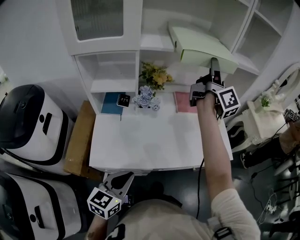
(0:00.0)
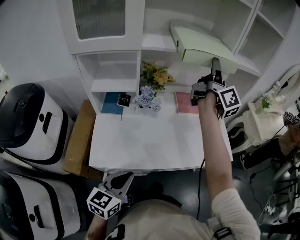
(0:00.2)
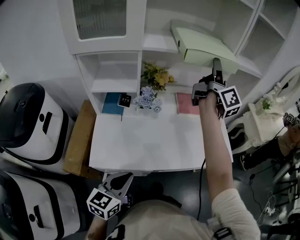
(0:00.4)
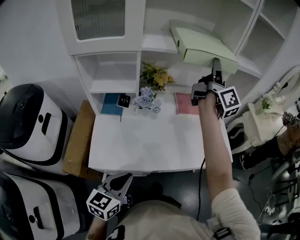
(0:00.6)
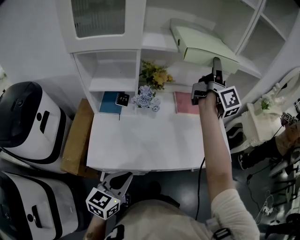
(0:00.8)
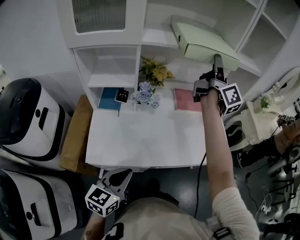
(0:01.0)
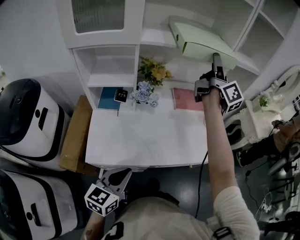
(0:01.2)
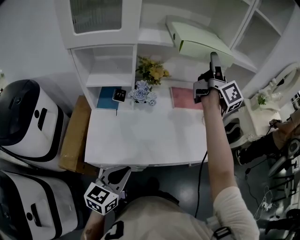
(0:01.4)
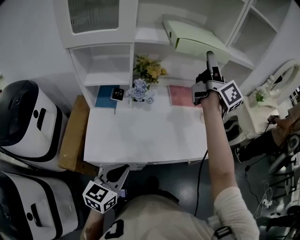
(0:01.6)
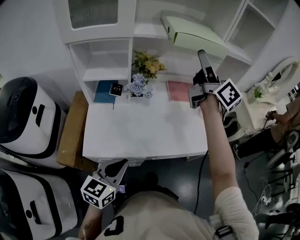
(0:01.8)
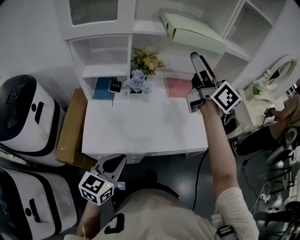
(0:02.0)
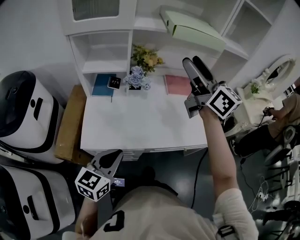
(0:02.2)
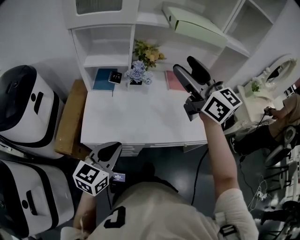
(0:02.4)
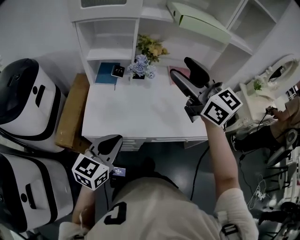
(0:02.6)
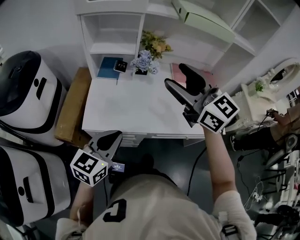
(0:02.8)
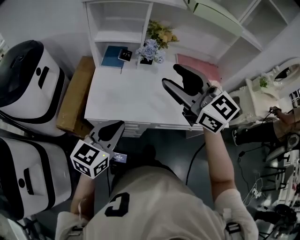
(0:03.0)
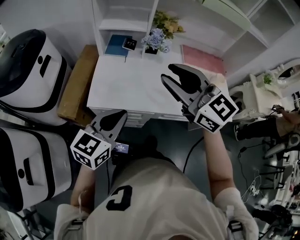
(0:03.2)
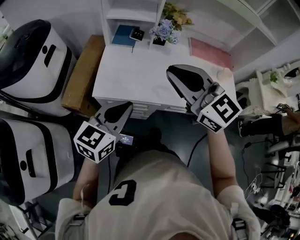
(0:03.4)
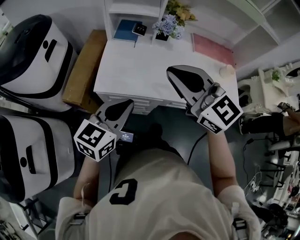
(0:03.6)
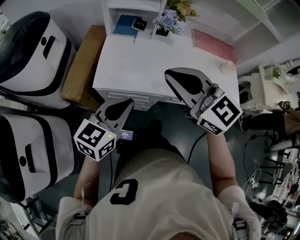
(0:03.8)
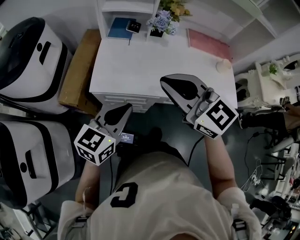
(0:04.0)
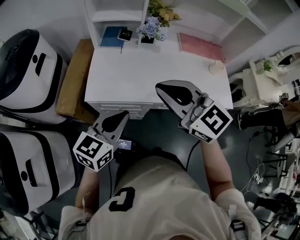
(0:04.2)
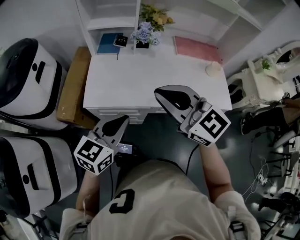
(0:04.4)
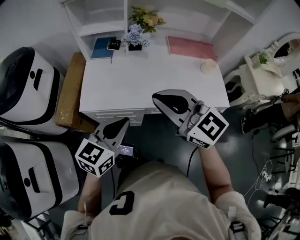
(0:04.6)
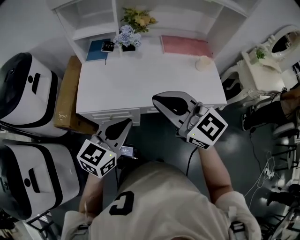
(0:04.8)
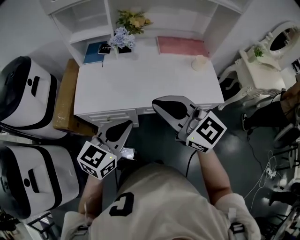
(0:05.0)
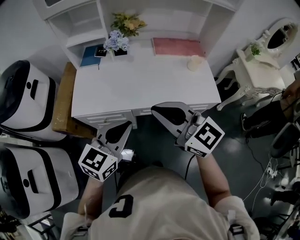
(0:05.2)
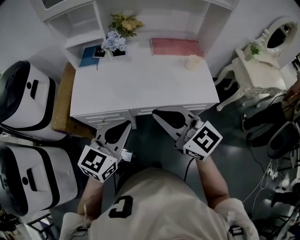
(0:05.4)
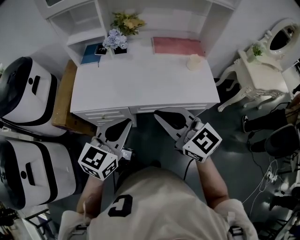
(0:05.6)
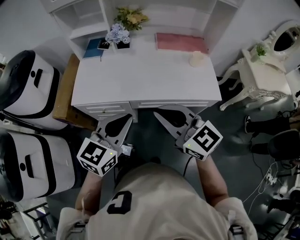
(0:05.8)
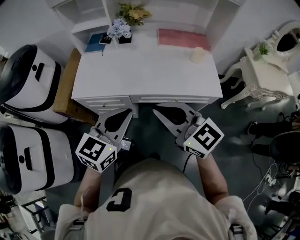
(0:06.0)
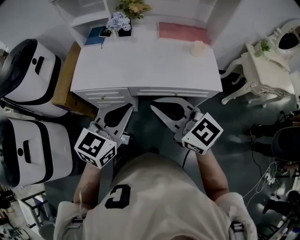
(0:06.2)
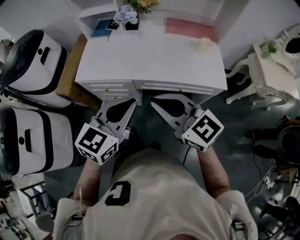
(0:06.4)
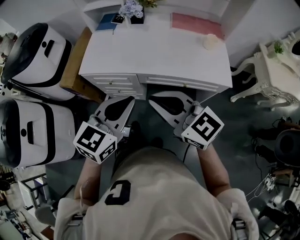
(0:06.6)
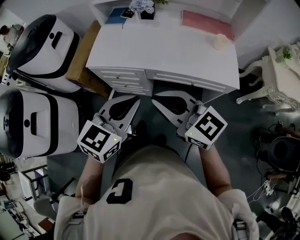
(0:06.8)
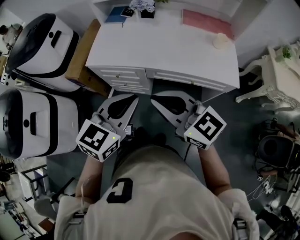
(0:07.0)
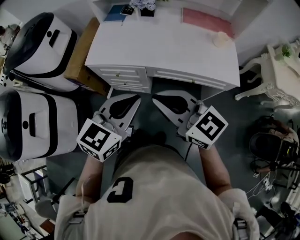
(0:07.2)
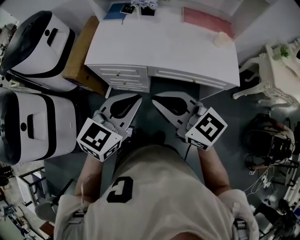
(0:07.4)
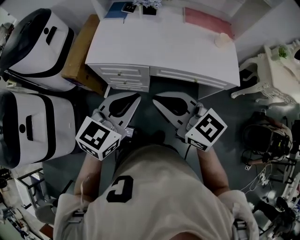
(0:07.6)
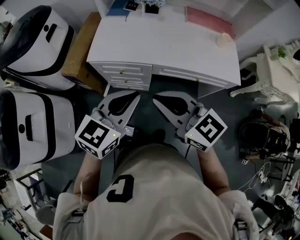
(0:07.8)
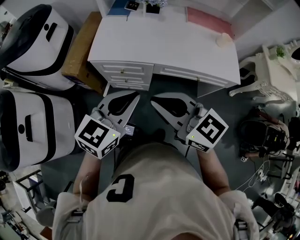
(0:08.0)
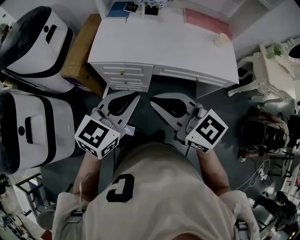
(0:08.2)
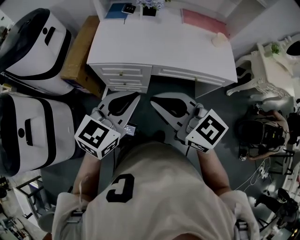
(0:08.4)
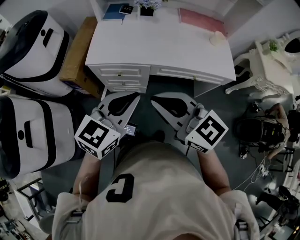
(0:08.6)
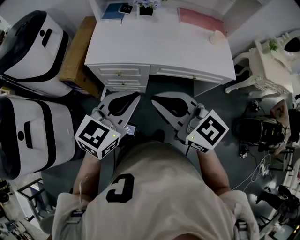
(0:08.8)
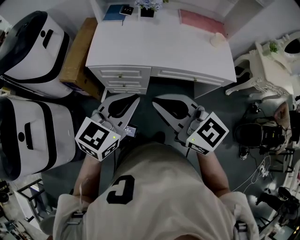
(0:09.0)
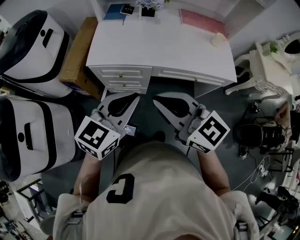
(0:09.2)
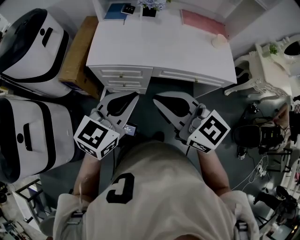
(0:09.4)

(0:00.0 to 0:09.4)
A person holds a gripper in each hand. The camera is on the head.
0:00.0 - 0:01.6: The grippers stay close to where they were, moving slightly.
0:01.6 - 0:03.2: The left gripper moves about 5 cm. Meanwhile the right gripper moves approximately 35 cm, tips its fingers downward by roughly 30 degrees, and closes.
0:03.2 - 0:04.8: The right gripper is displaced backward and to the right by approximately 10 cm. The left gripper is displaced to the right and backward by some 10 cm.
0:04.8 - 0:06.2: The right gripper goes some 15 cm backward and to the right. The left gripper shifts about 10 cm to the right and backward.
0:06.2 - 0:07.8: The grippers both shift to the left by about 10 cm.
0:07.8 - 0:09.4: The grippers move only a little.

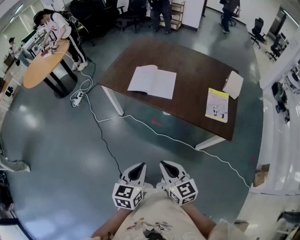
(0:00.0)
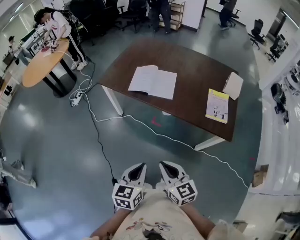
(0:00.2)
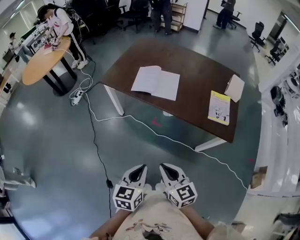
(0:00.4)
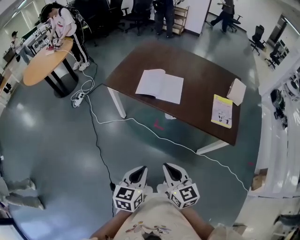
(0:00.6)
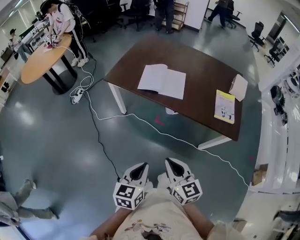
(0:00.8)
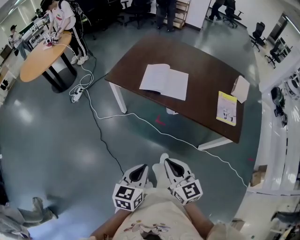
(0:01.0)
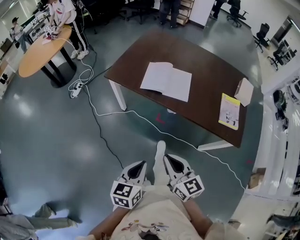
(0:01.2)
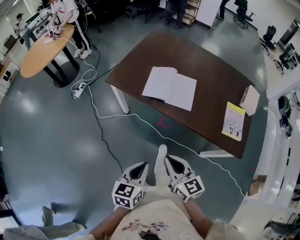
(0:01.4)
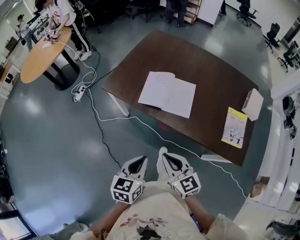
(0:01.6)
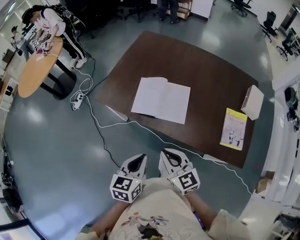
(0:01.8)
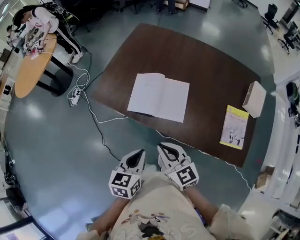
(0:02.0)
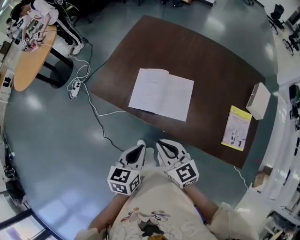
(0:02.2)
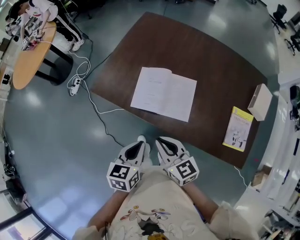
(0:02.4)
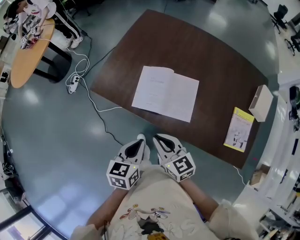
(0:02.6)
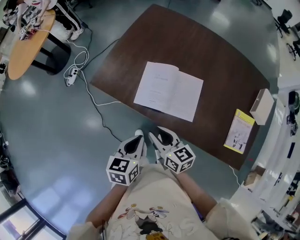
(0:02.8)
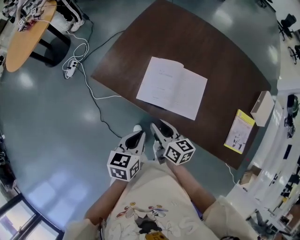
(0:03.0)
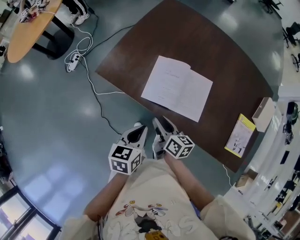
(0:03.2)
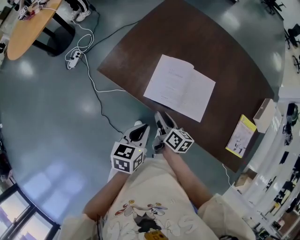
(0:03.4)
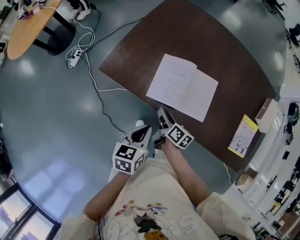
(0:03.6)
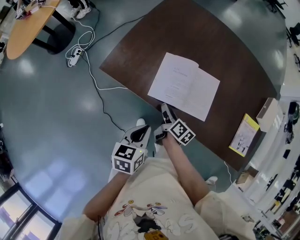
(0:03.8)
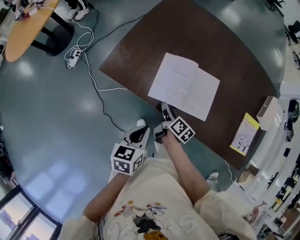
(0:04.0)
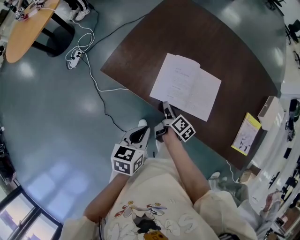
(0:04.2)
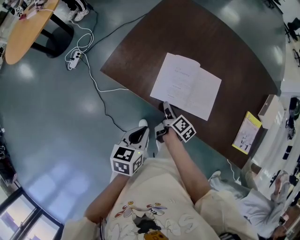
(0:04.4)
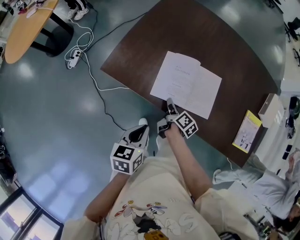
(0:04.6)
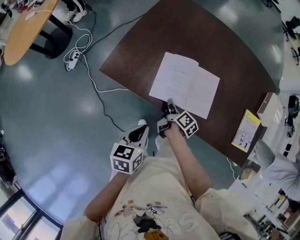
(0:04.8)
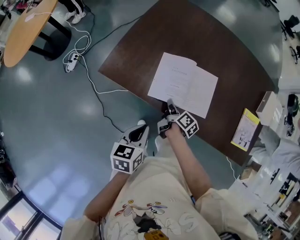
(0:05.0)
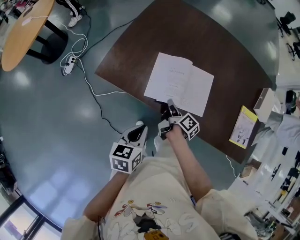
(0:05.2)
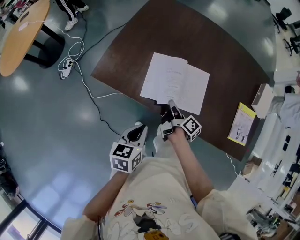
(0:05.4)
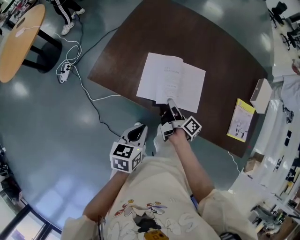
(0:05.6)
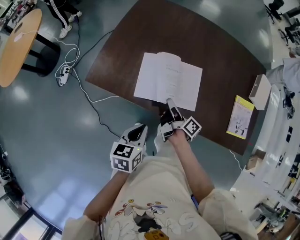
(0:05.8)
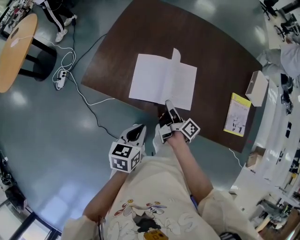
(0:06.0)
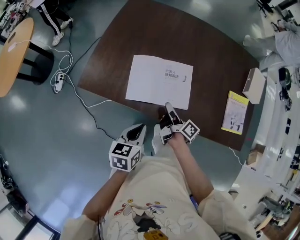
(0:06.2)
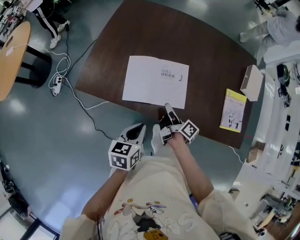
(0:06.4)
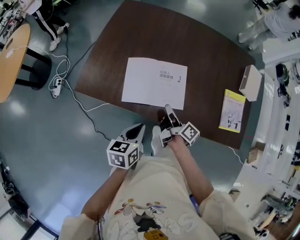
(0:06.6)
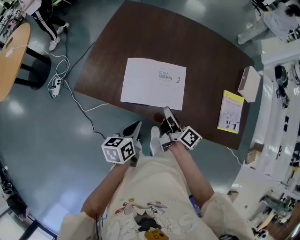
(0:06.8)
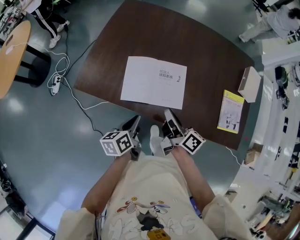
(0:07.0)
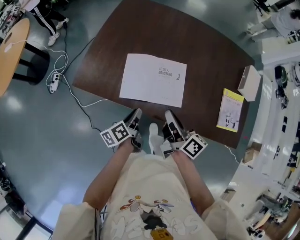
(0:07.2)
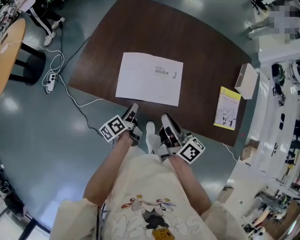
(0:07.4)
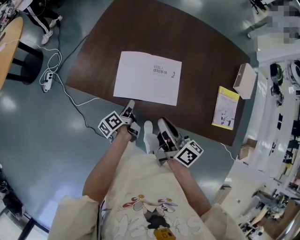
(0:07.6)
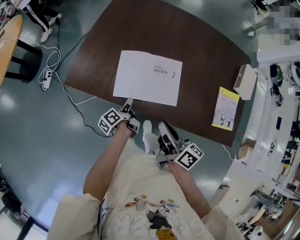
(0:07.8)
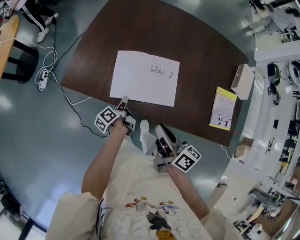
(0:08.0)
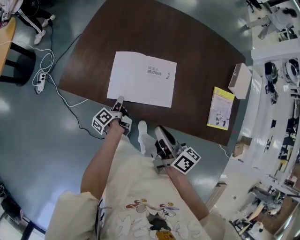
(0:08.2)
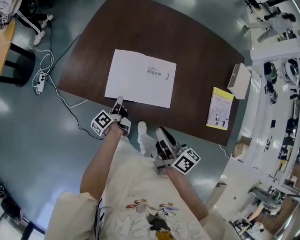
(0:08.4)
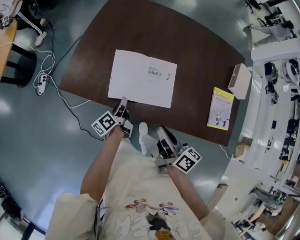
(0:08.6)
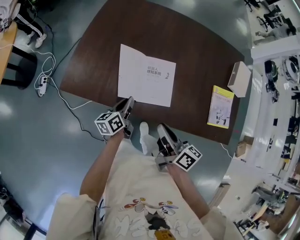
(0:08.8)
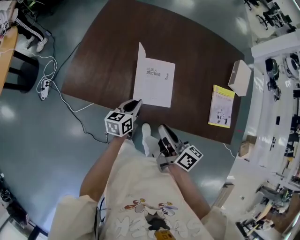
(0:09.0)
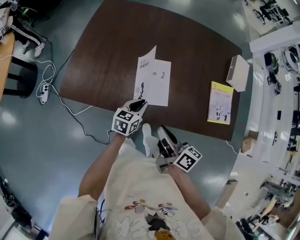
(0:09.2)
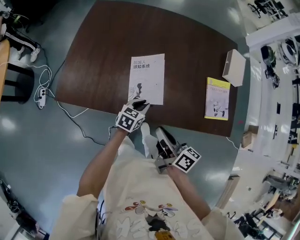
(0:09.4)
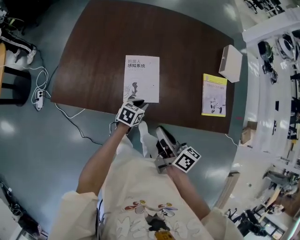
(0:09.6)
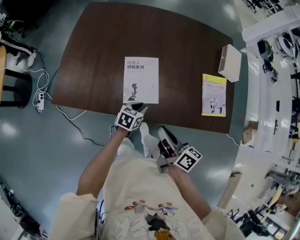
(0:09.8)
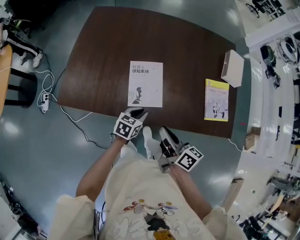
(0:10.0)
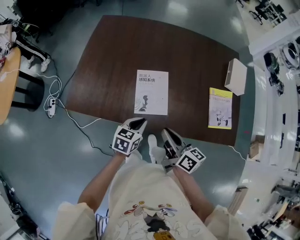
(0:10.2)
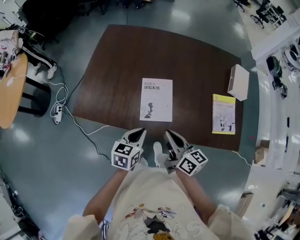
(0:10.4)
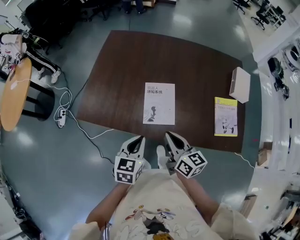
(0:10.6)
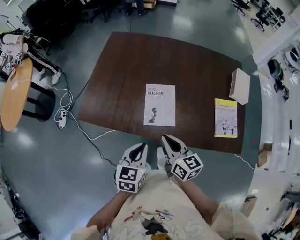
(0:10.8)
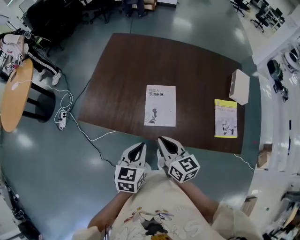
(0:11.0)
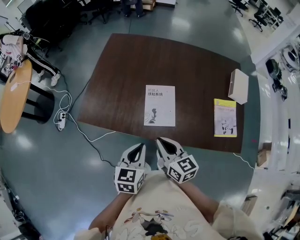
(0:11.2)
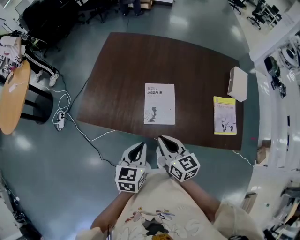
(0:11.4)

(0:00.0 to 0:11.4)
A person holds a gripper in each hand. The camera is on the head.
0:00.0 - 0:01.4: The grippers both shift forward and to the left by roughly 20 cm.
0:01.4 - 0:02.8: The grippers both shift forward by roughly 30 cm. The right gripper opens its fingers.
0:02.8 - 0:04.2: The left gripper travels to the left by approximately 5 cm. Meanwhile the right gripper goes roughly 20 cm downward and forward, and rotates around the line of its fingers by roughly 50 degrees, clockwise from behind.
0:04.2 - 0:05.6: The right gripper shifts roughly 10 cm to the right and upward, turns by approximately 20 degrees, and closes, then opens again; the left gripper heads to the right, covering approximately 5 cm.
0:05.6 - 0:07.2: The right gripper goes approximately 15 cm upward and to the right, rotates roughly 30 degrees, and closes up. The left gripper heads downward and forward, covering some 10 cm, and rotates approximately 40 degrees.
0:07.2 - 0:08.6: The left gripper moves forward and downward, approximately 10 cm.
0:08.6 - 0:10.0: The left gripper moves up and down over roughly 10 cm, changing direction 2 times, and rolls clockwise, seen from behind, by about 60 degrees, while the right gripper shifts by roughly 10 cm.
0:10.0 - 0:11.4: The left gripper moves upward, to the left and backward, some 20 cm, and swivels some 30 degrees, while the right gripper travels to the left by about 10 cm, and turns by some 40 degrees.

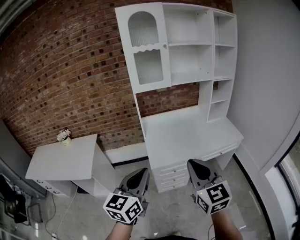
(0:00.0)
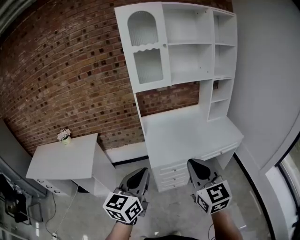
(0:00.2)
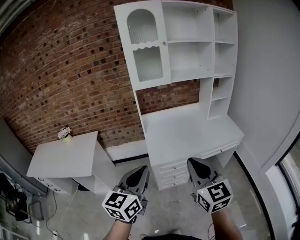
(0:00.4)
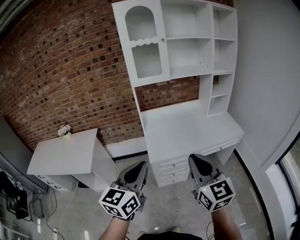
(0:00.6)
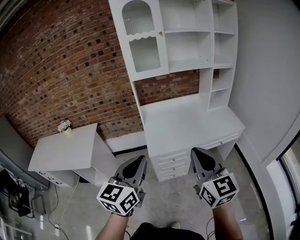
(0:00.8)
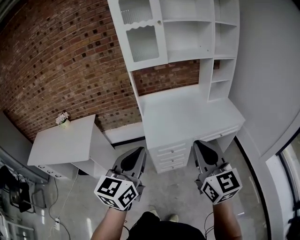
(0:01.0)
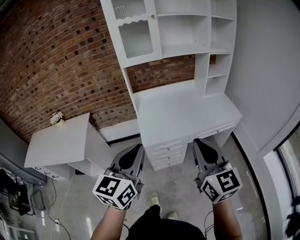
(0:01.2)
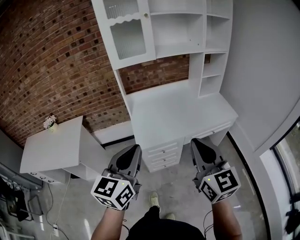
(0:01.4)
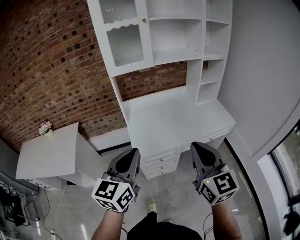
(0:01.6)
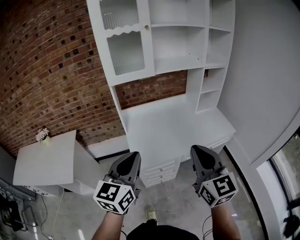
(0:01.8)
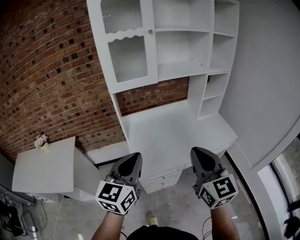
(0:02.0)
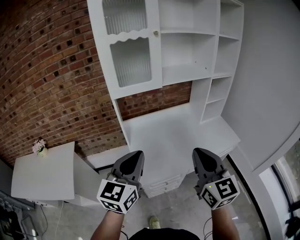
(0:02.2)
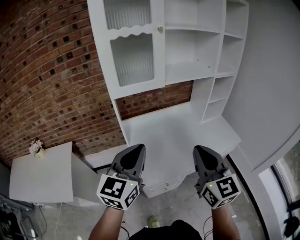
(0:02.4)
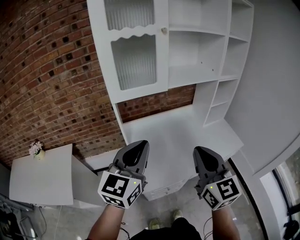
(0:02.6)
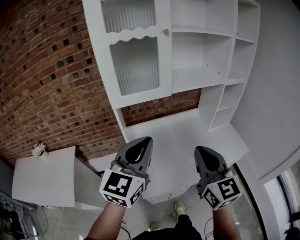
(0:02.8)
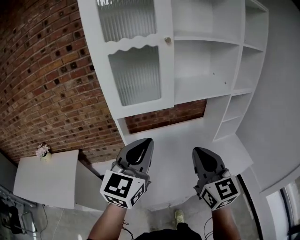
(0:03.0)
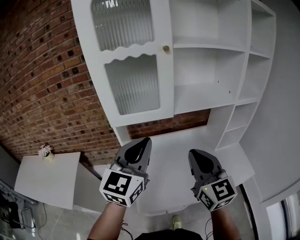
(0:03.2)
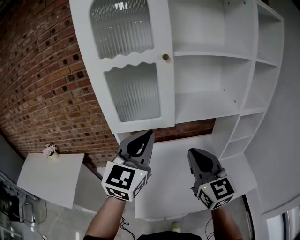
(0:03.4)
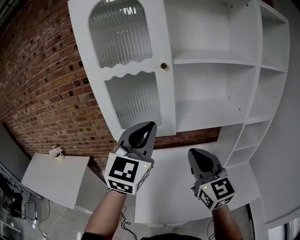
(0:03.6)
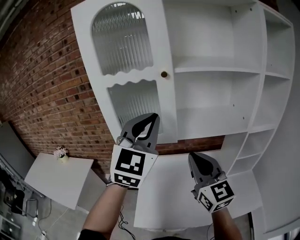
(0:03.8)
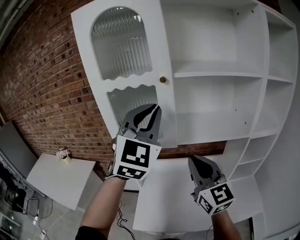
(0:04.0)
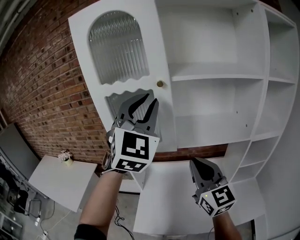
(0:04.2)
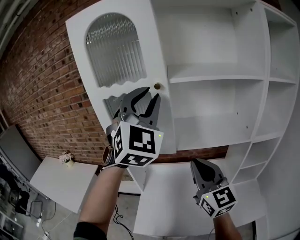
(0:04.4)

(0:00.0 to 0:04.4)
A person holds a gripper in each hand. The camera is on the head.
0:00.0 - 0:01.4: The left gripper is displaced forward and to the right by roughly 10 cm. The right gripper moves to the right, about 5 cm.
0:01.4 - 0:03.0: The two grippers go some 35 cm forward.
0:03.0 - 0:04.4: The right gripper heads forward and to the right, covering approximately 15 cm, and turns by approximately 20 degrees, while the left gripper goes about 30 cm upward, forward and to the right, twists approximately 50 degrees clockwise, seen from behind, and opens up.
